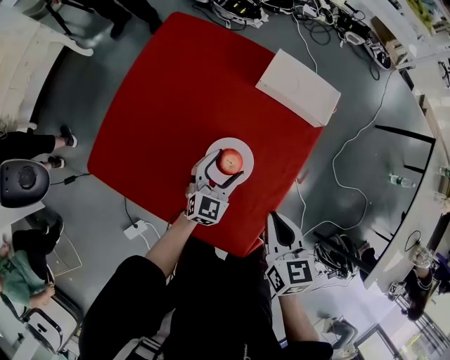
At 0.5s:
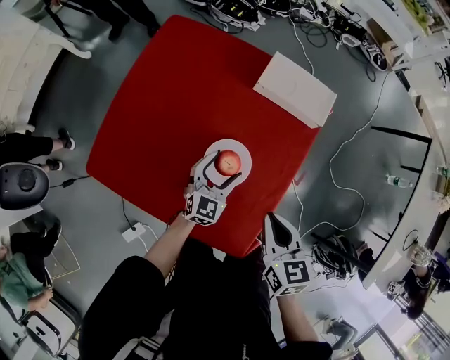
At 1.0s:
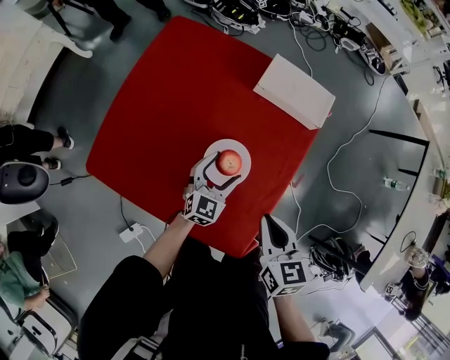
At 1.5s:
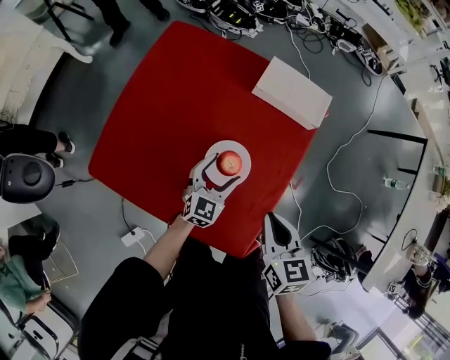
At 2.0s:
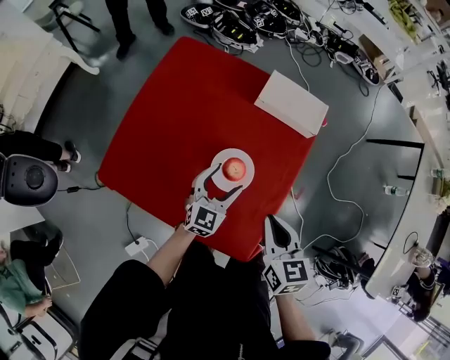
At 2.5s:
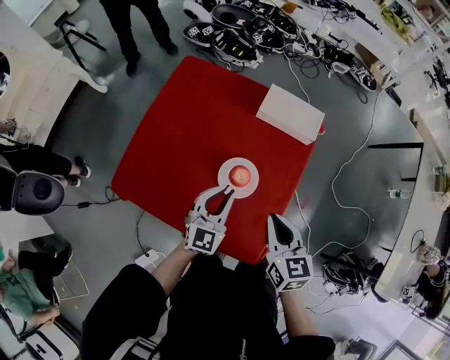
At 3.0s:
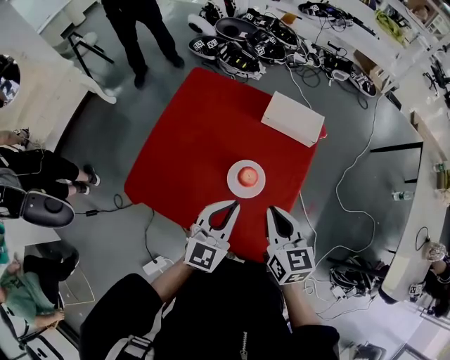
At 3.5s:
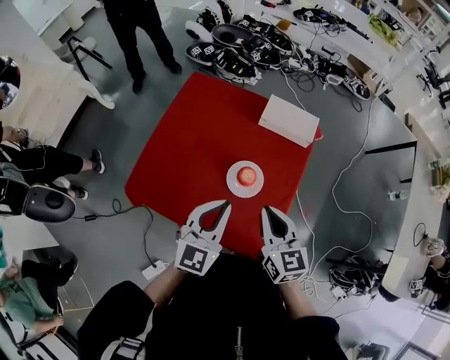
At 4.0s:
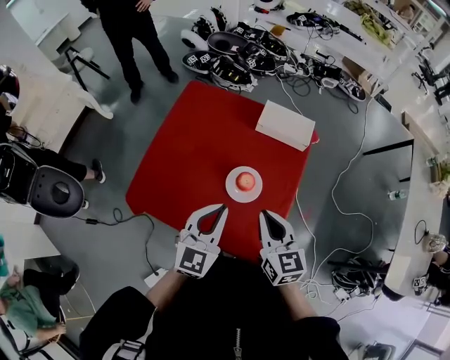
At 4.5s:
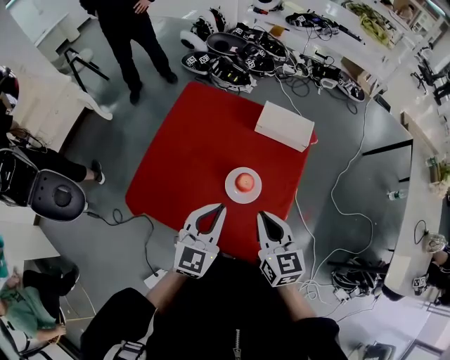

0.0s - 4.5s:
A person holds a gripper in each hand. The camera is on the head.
0.0s - 2.0s: The left gripper moves upward, some 5 cm.
2.0s - 4.5s: The left gripper moves upward and backward, about 25 cm, and closes its fingers; the right gripper heads upward and to the left, covering about 10 cm.

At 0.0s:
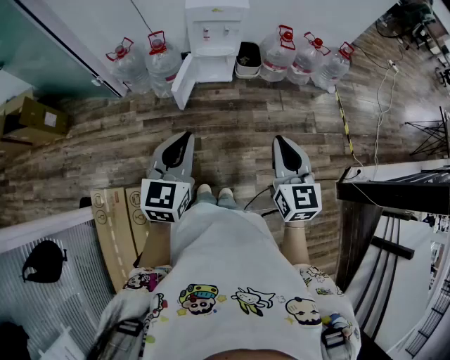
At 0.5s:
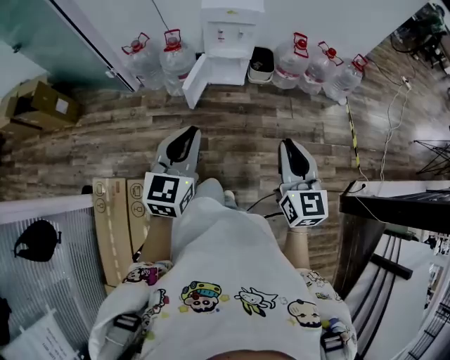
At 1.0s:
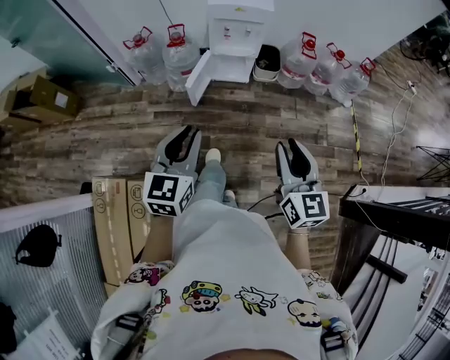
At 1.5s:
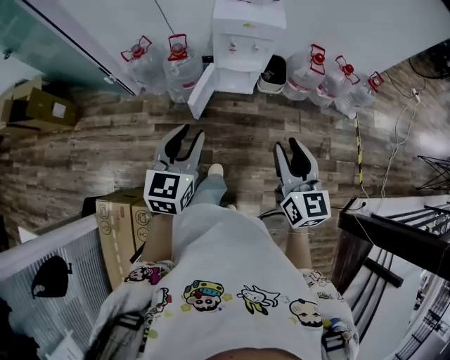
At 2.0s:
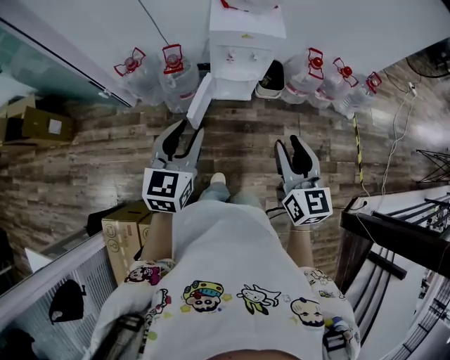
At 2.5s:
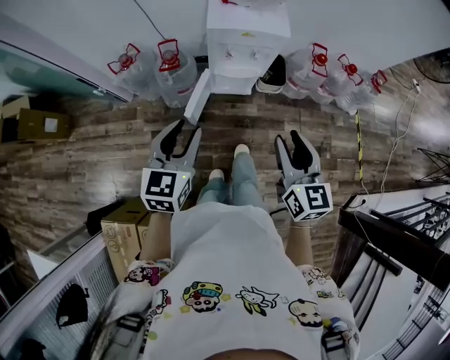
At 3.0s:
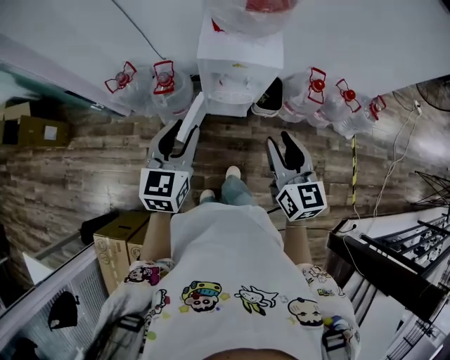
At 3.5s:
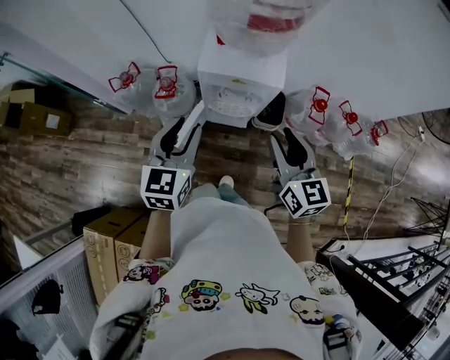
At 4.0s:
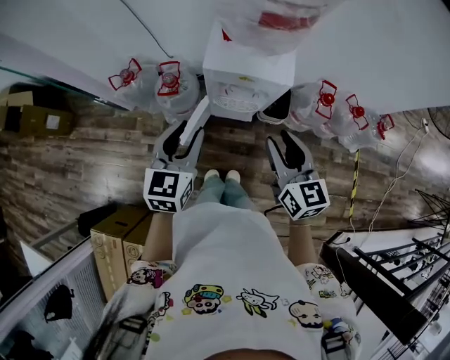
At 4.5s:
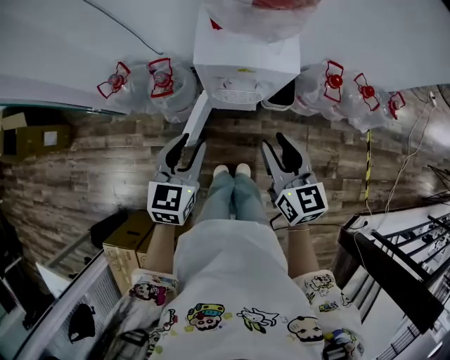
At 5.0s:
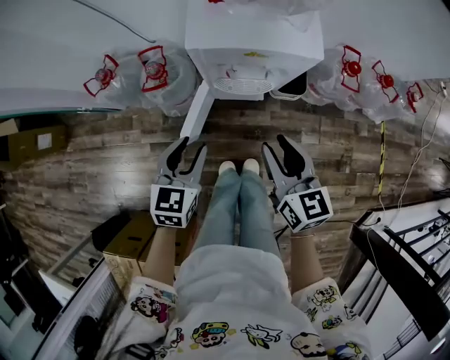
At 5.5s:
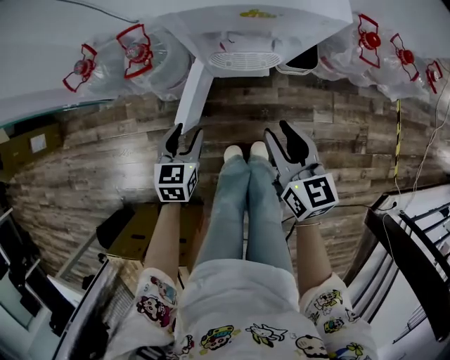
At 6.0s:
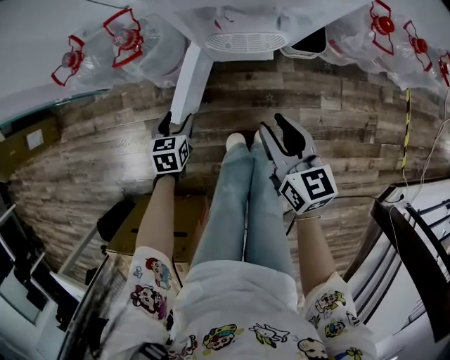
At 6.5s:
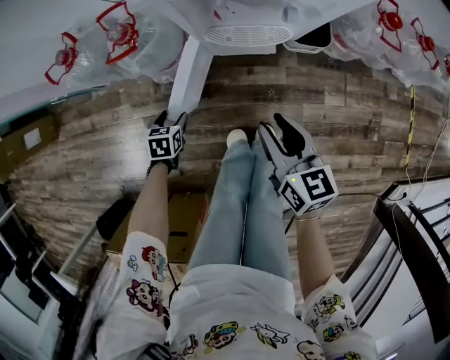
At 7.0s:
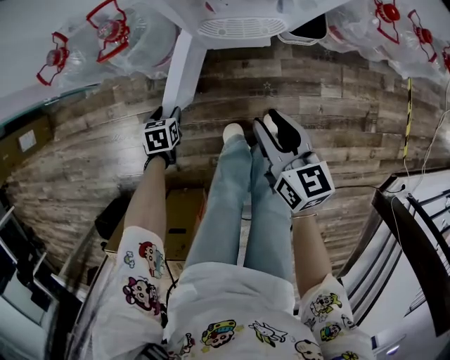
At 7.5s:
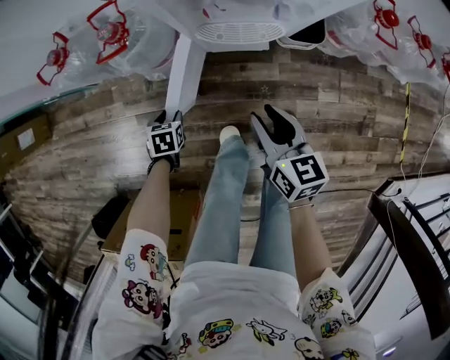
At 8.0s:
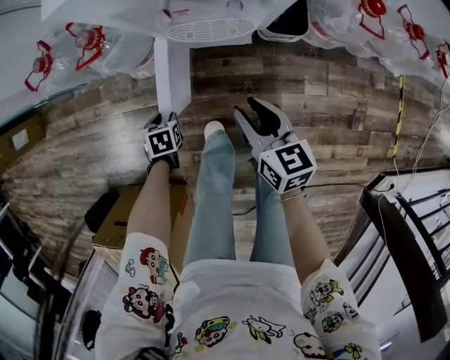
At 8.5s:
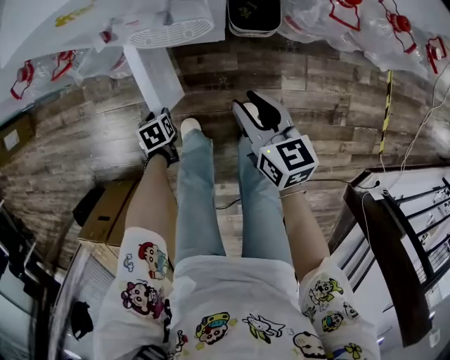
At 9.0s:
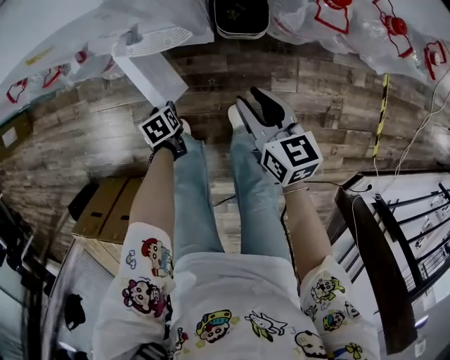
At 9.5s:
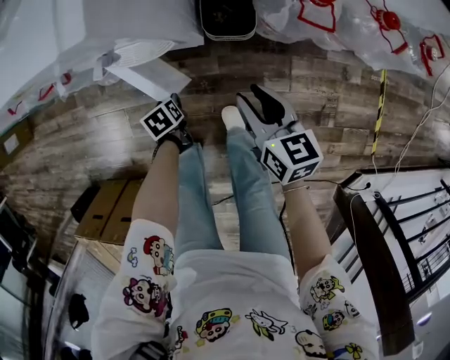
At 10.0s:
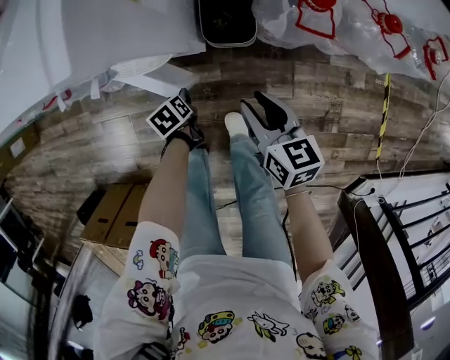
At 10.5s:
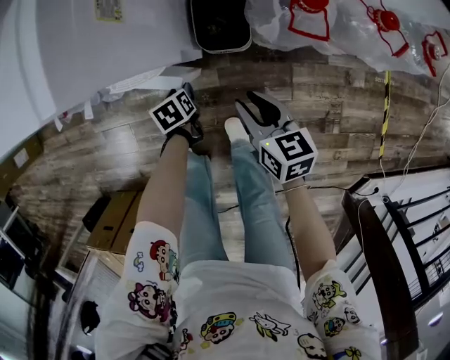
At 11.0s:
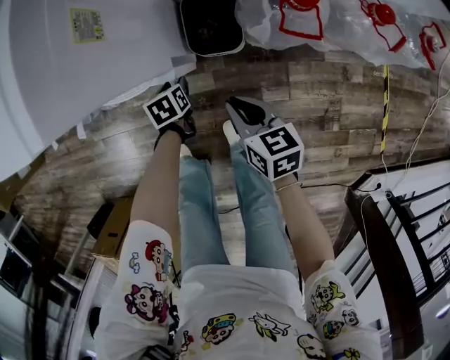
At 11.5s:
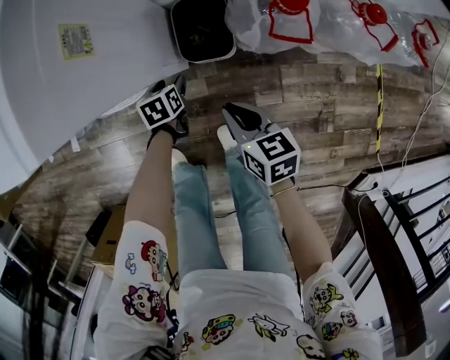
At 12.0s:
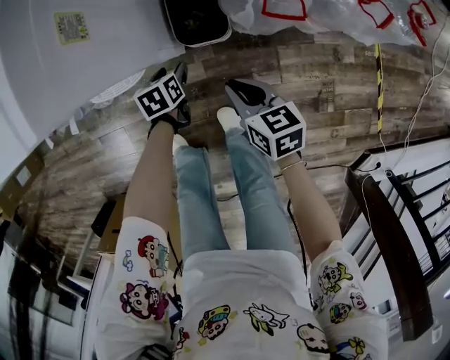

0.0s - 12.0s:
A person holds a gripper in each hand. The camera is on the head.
0.0s - 2.0s: Both grippers move forward, about 25 cm. The left gripper opens; the right gripper opens.
2.0s - 4.0s: The two grippers go roughly 20 cm forward.
4.0s - 6.0s: The two grippers go roughly 40 cm downward. The left gripper points its fingers some 30 degrees further downward, and opens its fingers.
6.0s - 8.0s: The two grippers go about 5 cm downward. The left gripper changes its angle by approximately 20 degrees, and closes.
8.0s - 10.0s: The left gripper changes place by approximately 30 cm, and swivels approximately 30 degrees. The right gripper changes place by some 25 cm.
10.0s - 12.0s: The right gripper ends up some 5 cm from where it was, and closes its fingers; the left gripper moves to the right and forward, about 15 cm, and turns by approximately 30 degrees.

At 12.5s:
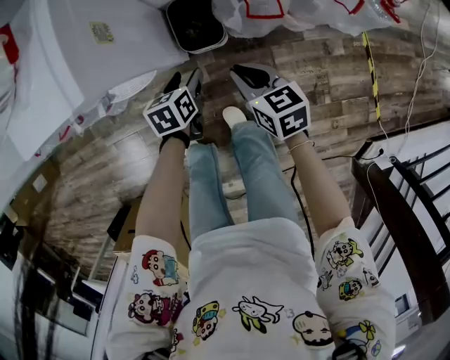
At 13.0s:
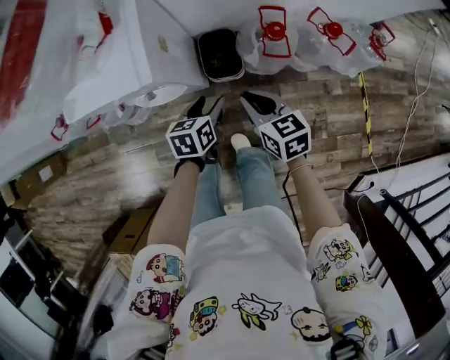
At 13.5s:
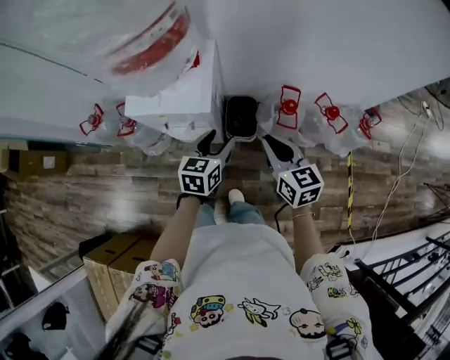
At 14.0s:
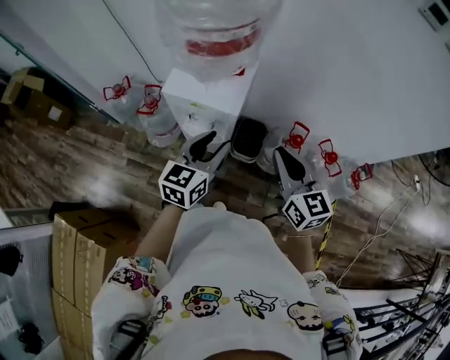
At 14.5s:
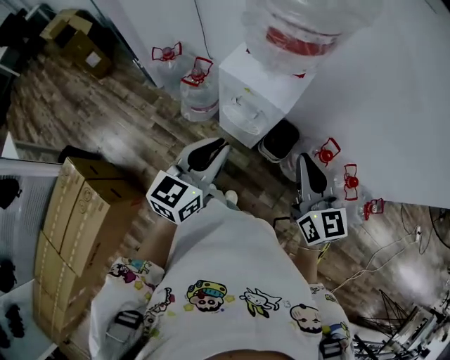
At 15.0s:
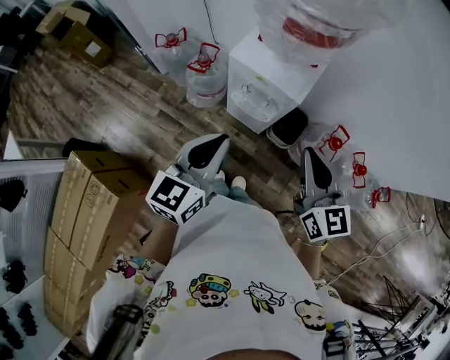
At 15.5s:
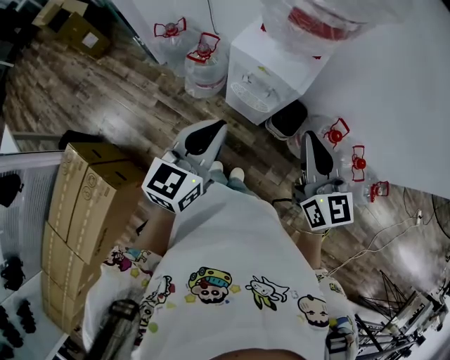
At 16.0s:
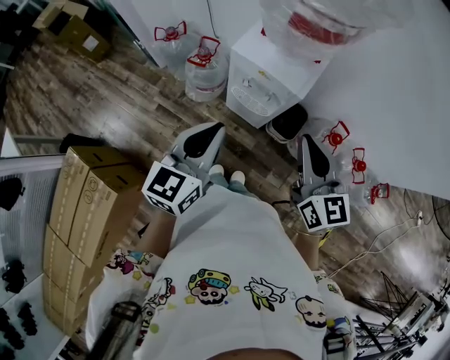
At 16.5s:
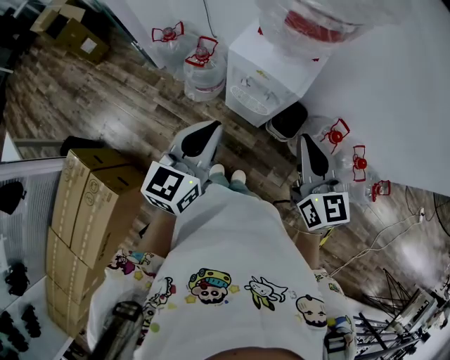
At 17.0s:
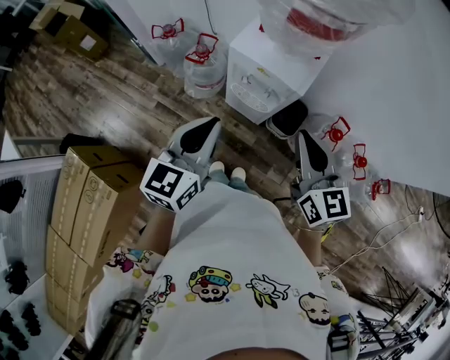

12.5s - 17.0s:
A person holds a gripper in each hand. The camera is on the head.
12.5s - 14.5s: Both grippers move upward, approximately 50 cm. The left gripper angles its fingers upward, by approximately 40 degrees, and closes. The right gripper angles its fingers upward, by roughly 30 degrees.
14.5s - 17.0s: Both grippers travel together to the left, roughly 5 cm.

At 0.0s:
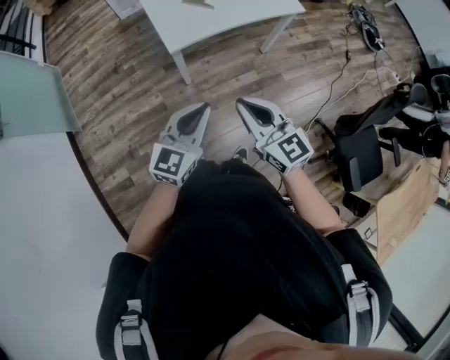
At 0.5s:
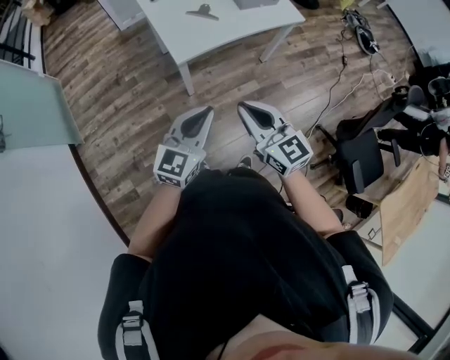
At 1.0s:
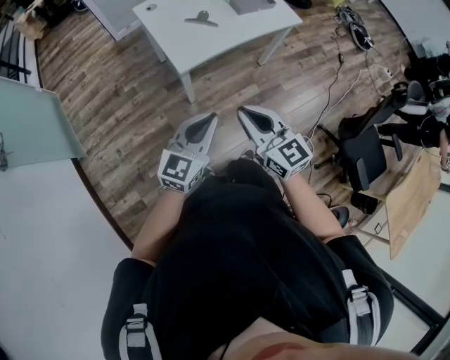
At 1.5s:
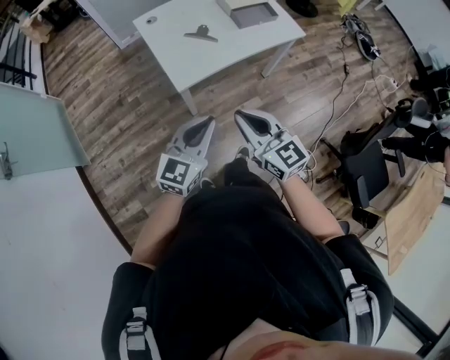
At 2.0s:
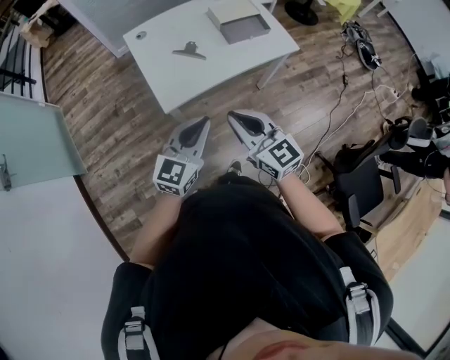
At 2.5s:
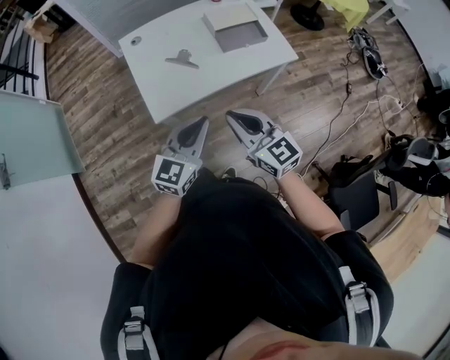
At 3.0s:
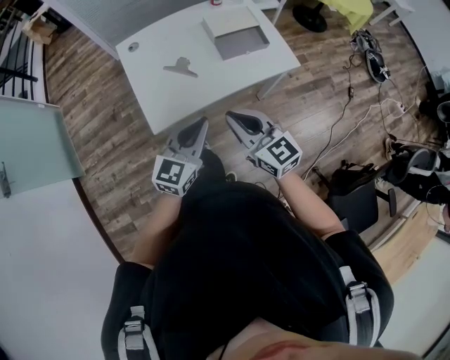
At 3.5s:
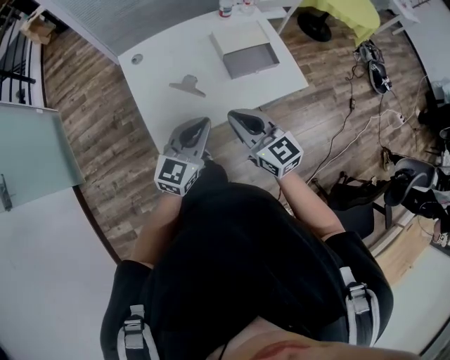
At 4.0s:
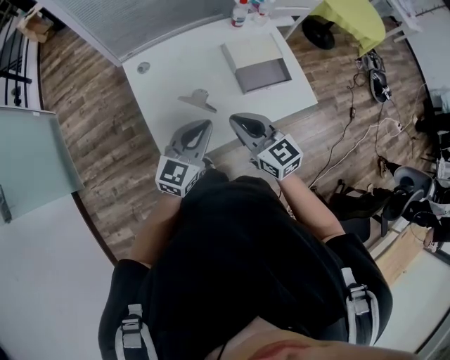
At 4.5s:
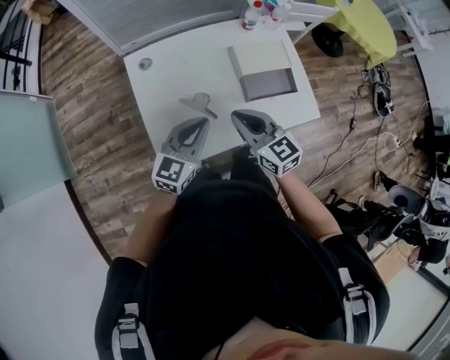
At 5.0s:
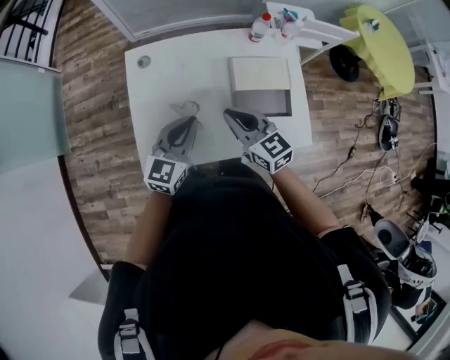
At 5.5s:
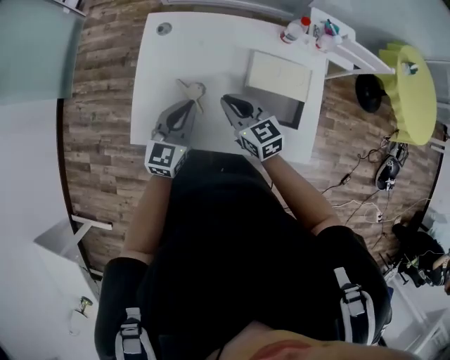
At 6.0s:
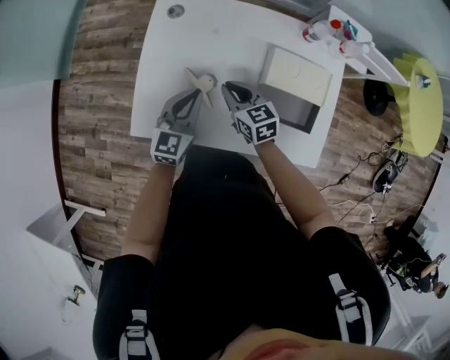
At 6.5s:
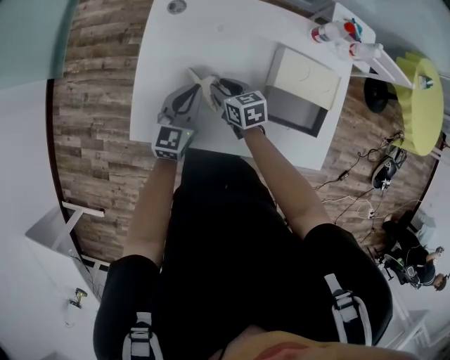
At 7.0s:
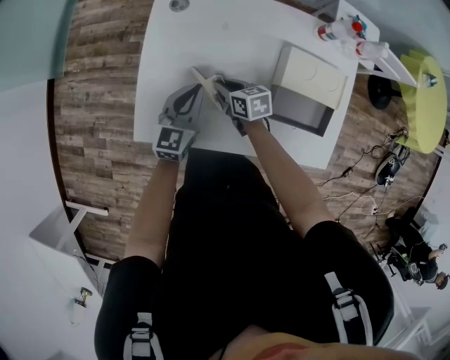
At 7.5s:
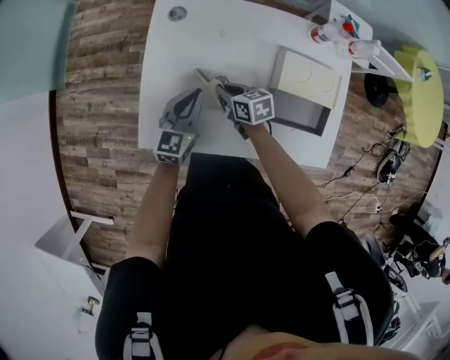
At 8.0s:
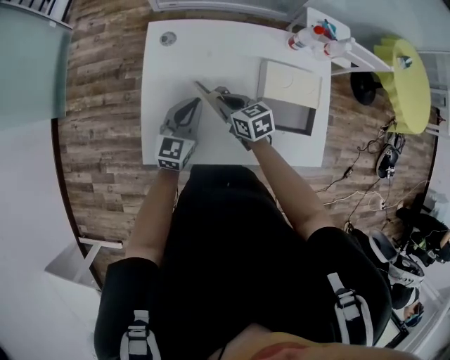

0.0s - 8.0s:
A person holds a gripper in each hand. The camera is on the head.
0.0s - 2.0s: Both grippers move forward, approximately 20 cm.
2.0s - 4.0s: The grippers both shift forward by about 30 cm.
4.0s - 6.0s: The two grippers go approximately 20 cm downward. The left gripper swivels some 40 degrees. The right gripper swivels about 30 degrees.
6.0s - 8.0s: The right gripper moves about 10 cm downward and comes back, and opens, then closes once more.
